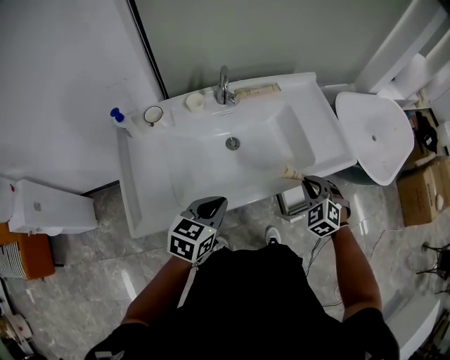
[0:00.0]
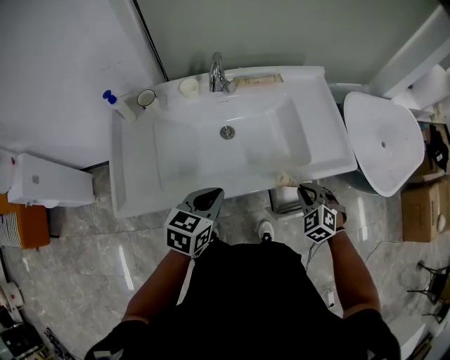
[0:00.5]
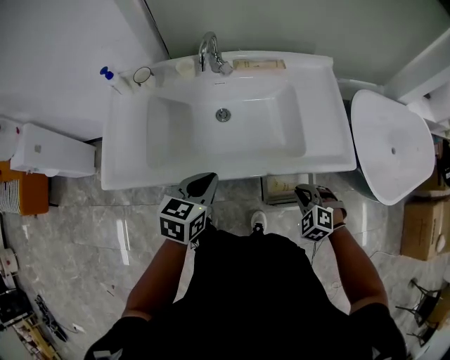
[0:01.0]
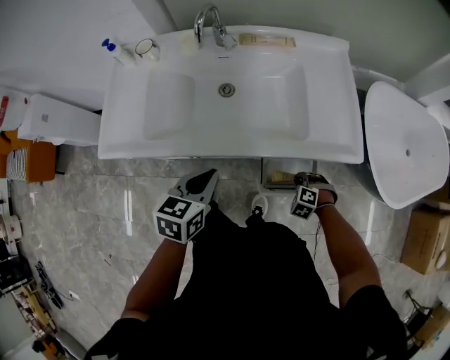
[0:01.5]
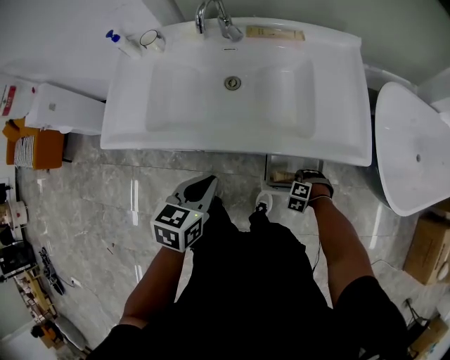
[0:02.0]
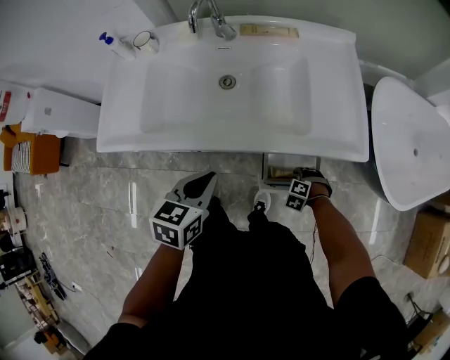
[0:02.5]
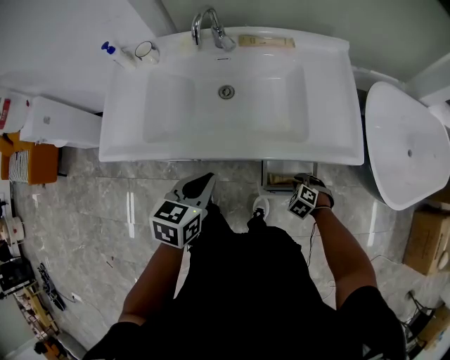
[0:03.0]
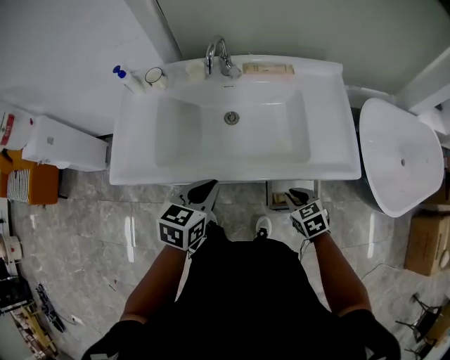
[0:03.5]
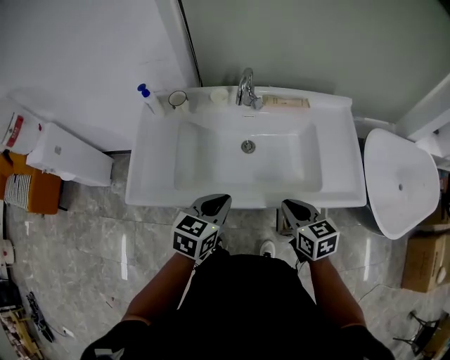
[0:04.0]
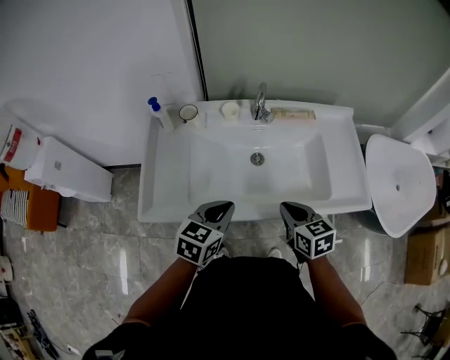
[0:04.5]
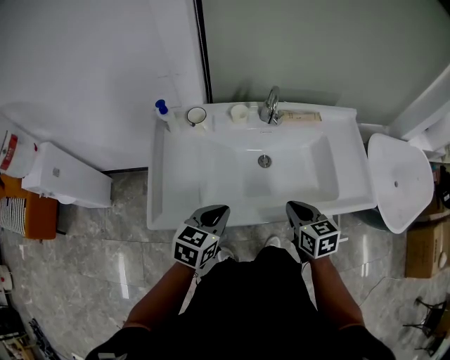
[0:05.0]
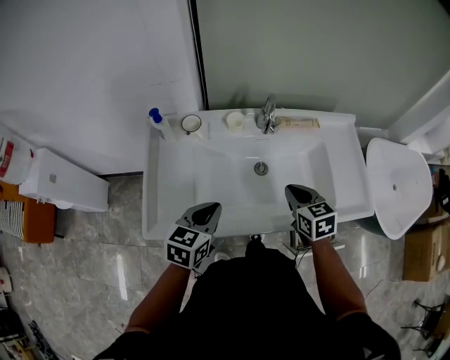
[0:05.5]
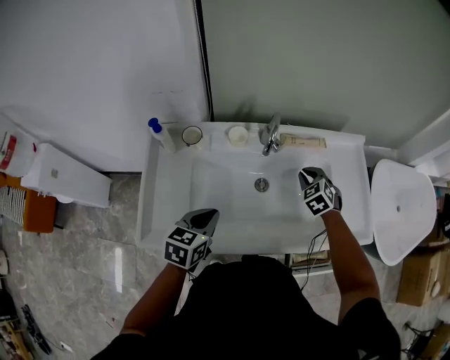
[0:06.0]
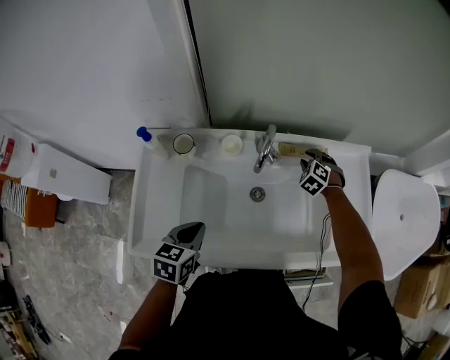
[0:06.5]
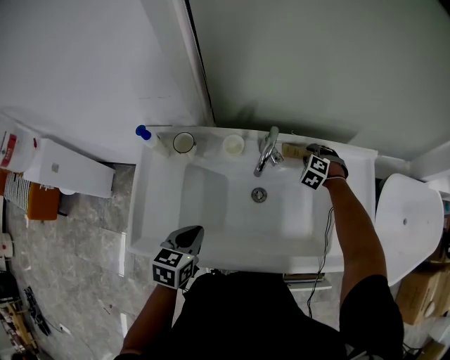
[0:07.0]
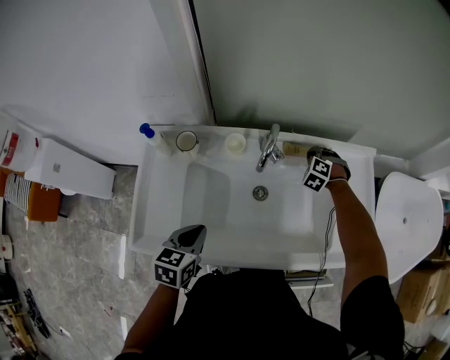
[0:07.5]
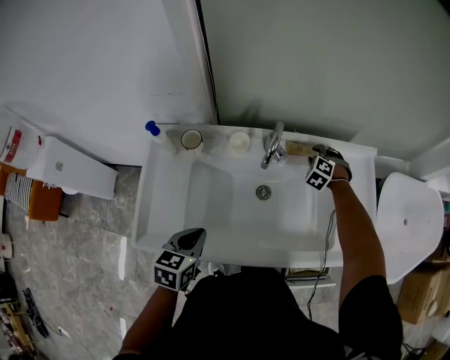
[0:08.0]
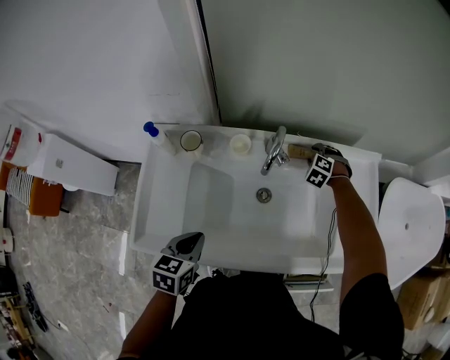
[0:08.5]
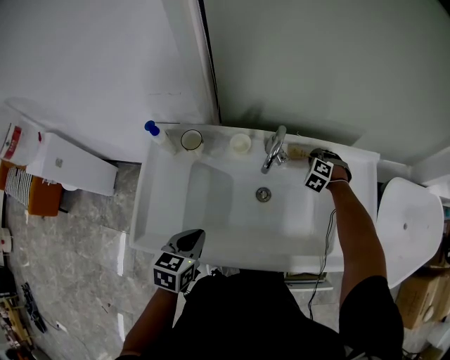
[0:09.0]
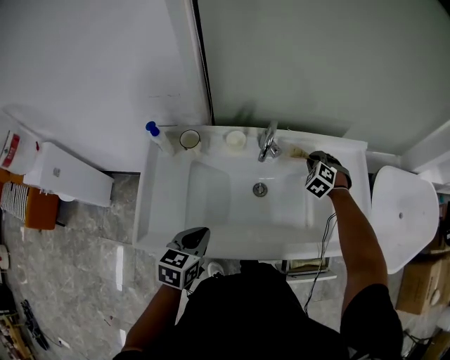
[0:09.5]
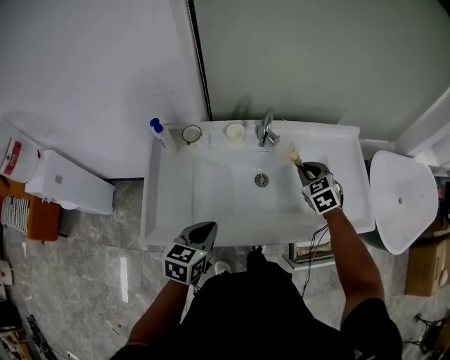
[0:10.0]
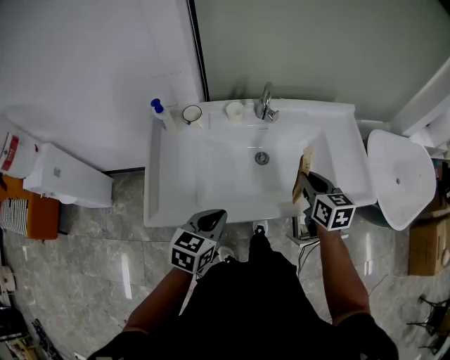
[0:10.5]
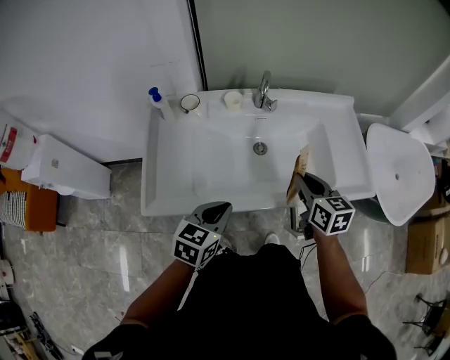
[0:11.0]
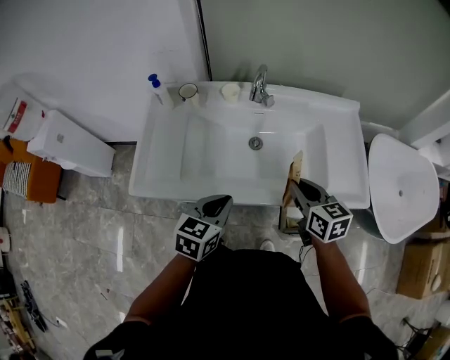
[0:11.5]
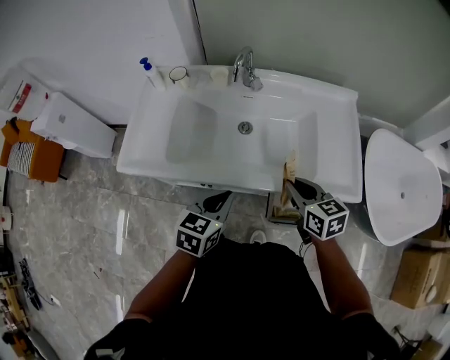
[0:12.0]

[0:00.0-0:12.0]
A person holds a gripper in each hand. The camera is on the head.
0.0 to 2.0 s: The left gripper shifts by roughly 20 cm, and turns by approximately 30 degrees, while the right gripper travels downward by roughly 35 cm, and tips its fingers downward by some 30 degrees.
2.0 to 4.0 s: The left gripper moves about 15 cm, while the right gripper is displaced upward by some 35 cm, and angles its fingers upward, by some 50 degrees.
4.0 to 6.0 s: The right gripper shifts about 25 cm forward, and turns by about 50 degrees. The left gripper goes about 15 cm to the left and forward.
6.0 to 8.0 s: The right gripper moves forward and downward, some 15 cm, rotates about 30 degrees, and opens its fingers.
8.0 to 10.0 s: The right gripper goes approximately 25 cm backward and upward, turns by roughly 40 degrees, and closes its fingers. The left gripper changes place by approximately 5 cm.
10.0 to 12.0 s: The right gripper heads backward and to the right, covering about 25 cm, and rotates about 40 degrees. Meanwhile the left gripper goes approximately 20 cm to the right and backward.

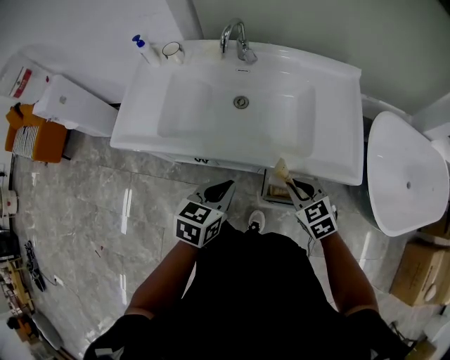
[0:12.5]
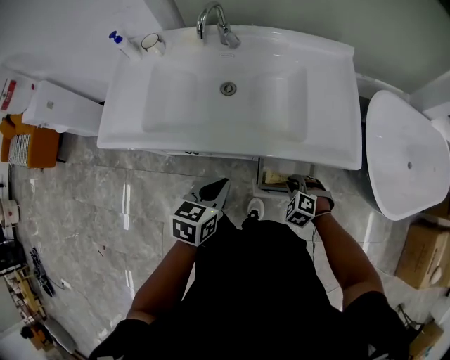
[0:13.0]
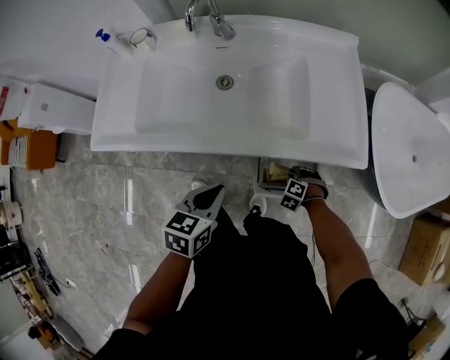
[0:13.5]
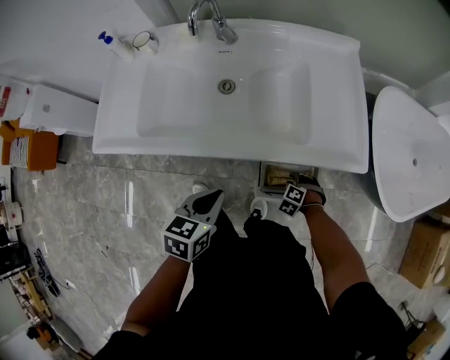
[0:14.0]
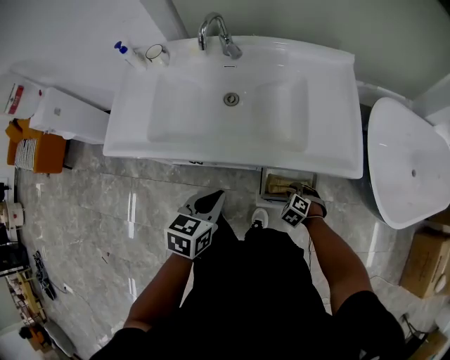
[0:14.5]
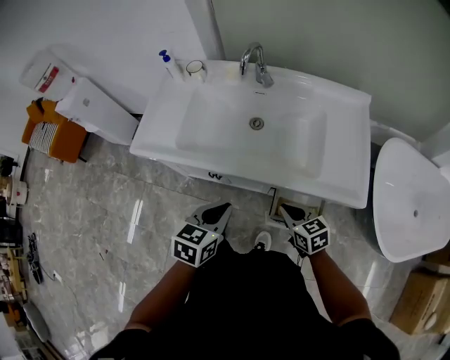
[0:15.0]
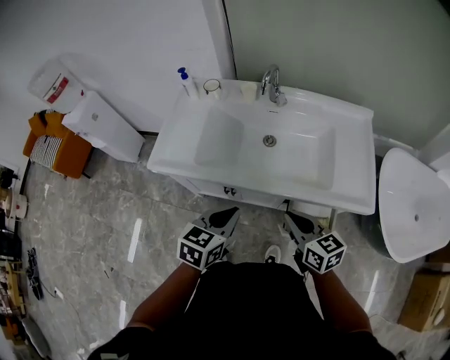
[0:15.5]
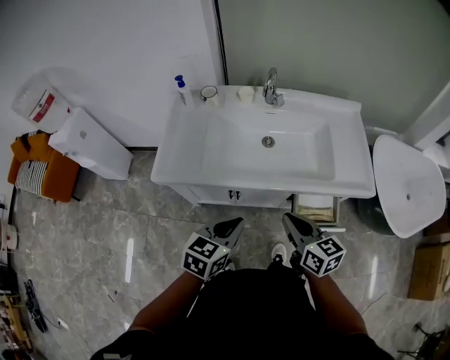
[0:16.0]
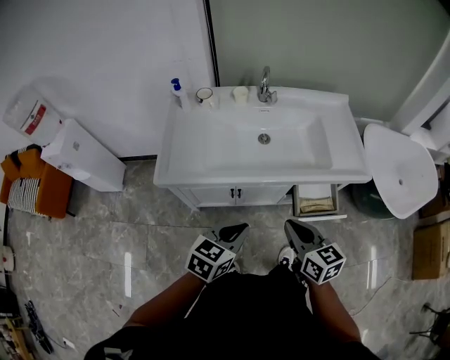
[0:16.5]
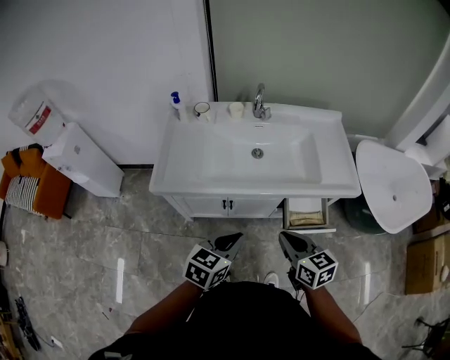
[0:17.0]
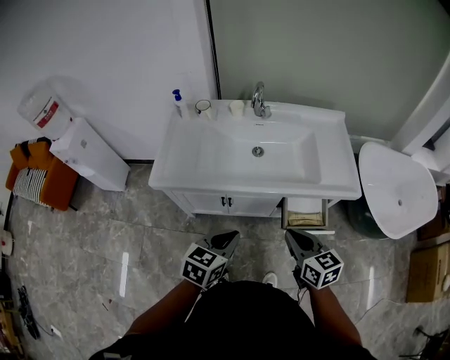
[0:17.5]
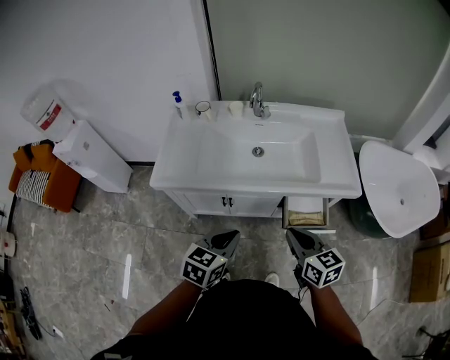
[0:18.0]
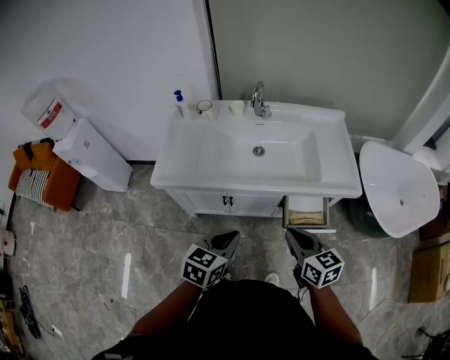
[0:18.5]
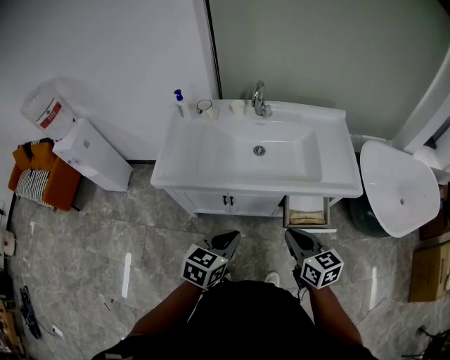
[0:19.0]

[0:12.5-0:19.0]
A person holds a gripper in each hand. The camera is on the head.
12.5 to 14.5 s: The right gripper heads downward, covering some 25 cm, and turns by some 40 degrees.
14.5 to 17.0 s: The left gripper shifts by approximately 20 cm; the right gripper travels upward by some 35 cm, and angles its fingers upward, by roughly 50 degrees.
17.0 to 19.0 s: The right gripper moves to the right, roughly 5 cm.

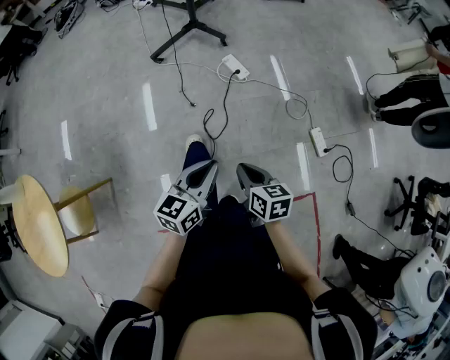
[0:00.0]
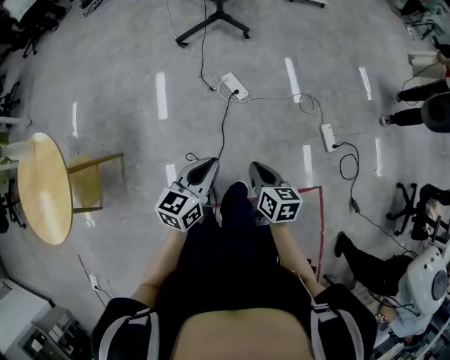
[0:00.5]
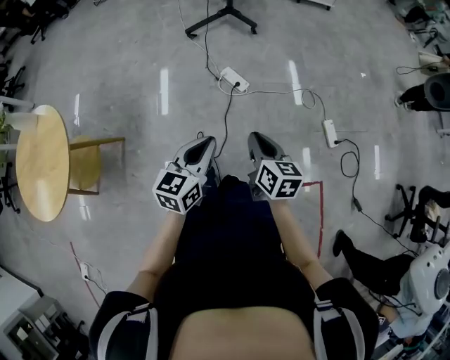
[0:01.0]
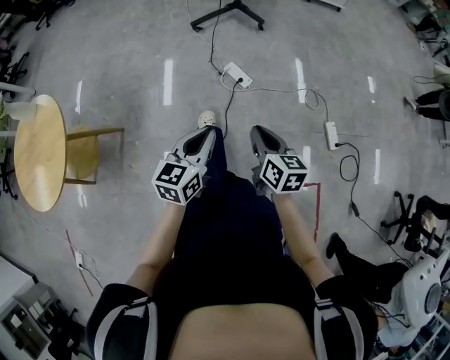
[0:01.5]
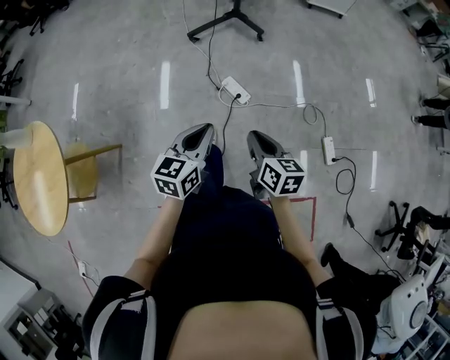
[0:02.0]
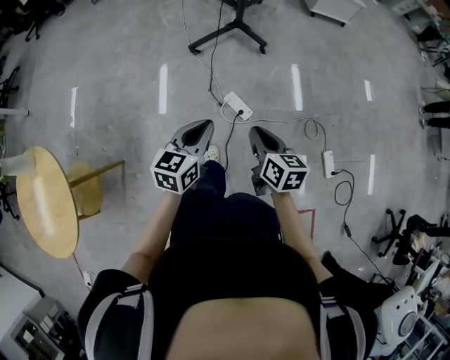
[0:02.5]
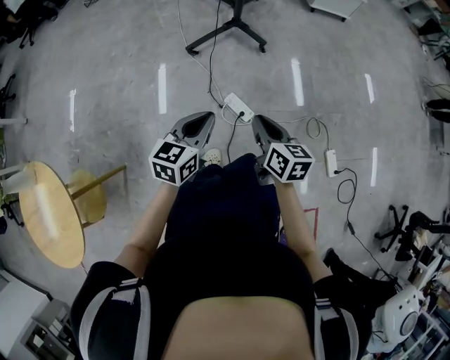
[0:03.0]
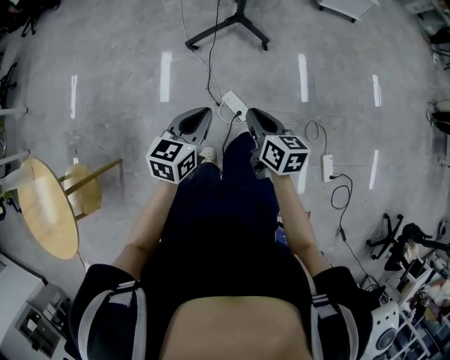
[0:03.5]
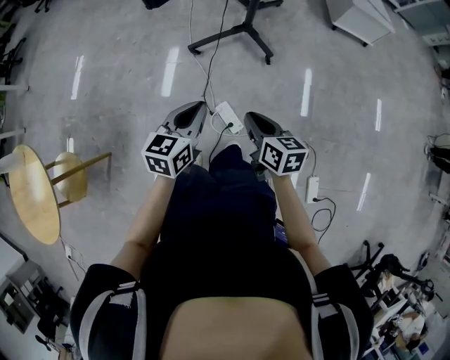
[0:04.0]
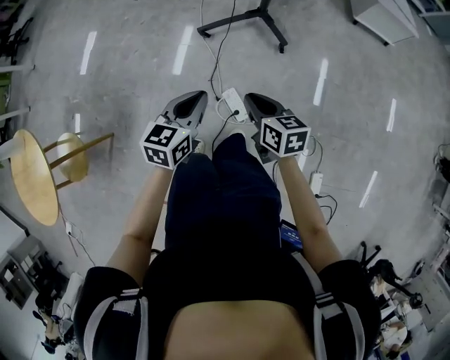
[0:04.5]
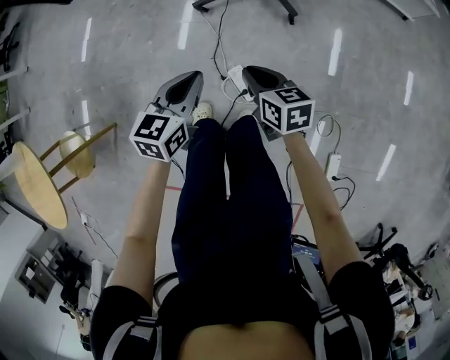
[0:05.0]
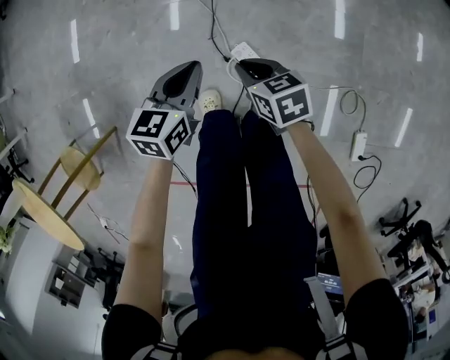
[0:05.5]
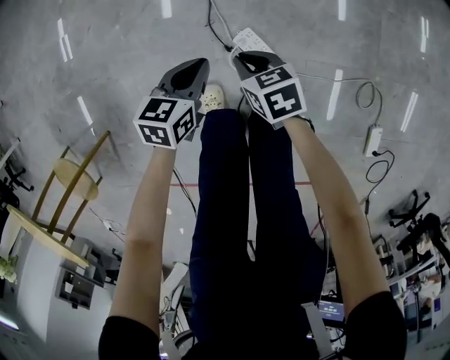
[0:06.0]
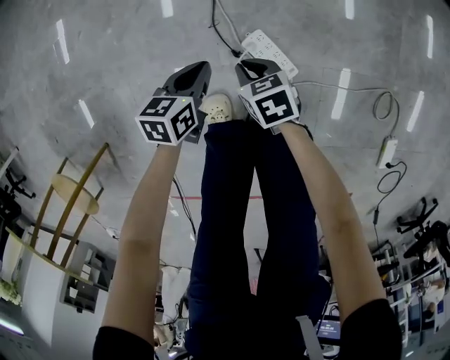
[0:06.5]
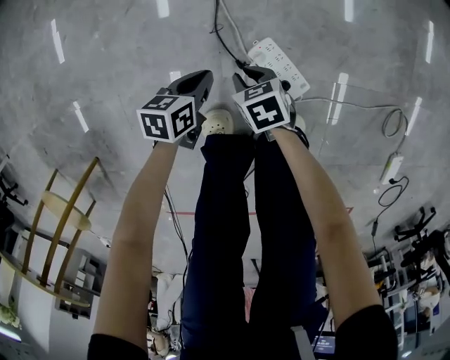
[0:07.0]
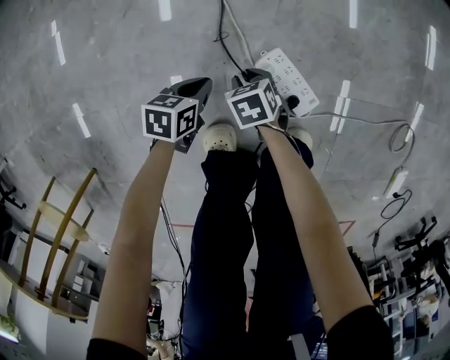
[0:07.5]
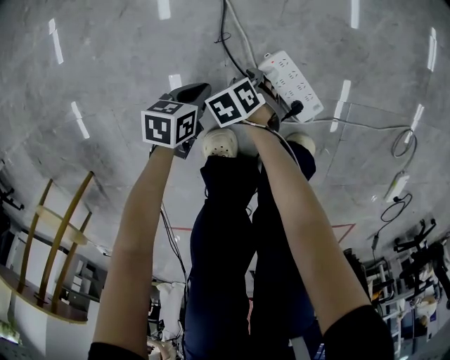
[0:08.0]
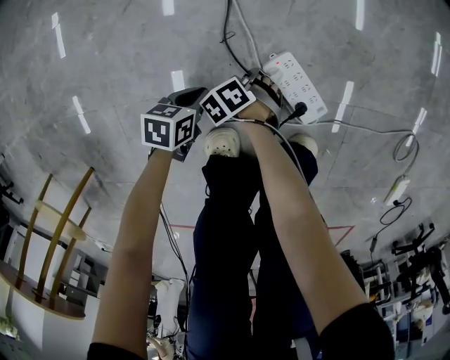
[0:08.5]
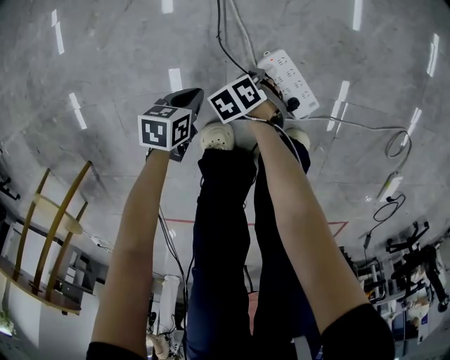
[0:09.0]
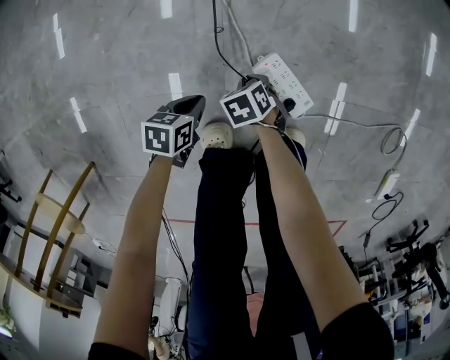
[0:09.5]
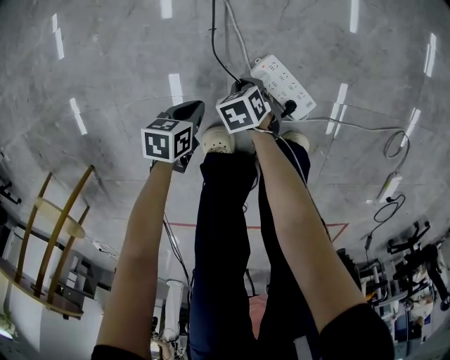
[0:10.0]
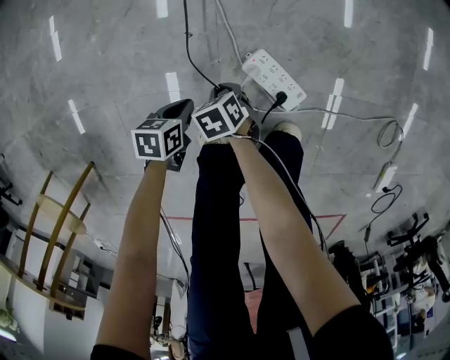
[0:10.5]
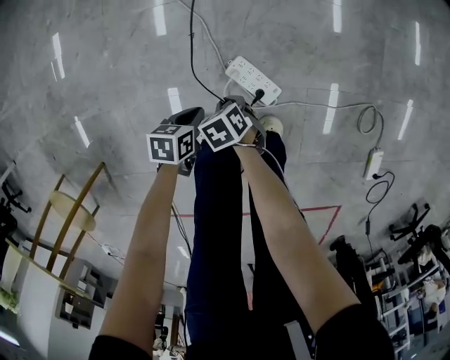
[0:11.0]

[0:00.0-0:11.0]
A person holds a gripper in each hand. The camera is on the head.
0.0 to 2.0 s: Both grippers move to the left, roughly 10 cm. The left gripper reaches approximately 15 cm backward, then returns; the right gripper reaches approximately 10 cm backward, then returns.
2.0 to 3.5 s: Both grippers move forward, some 25 cm.
3.5 to 5.5 s: The grippers both shift downward and forward by about 30 cm. The right gripper rotates approximately 30 degrees.
5.5 to 7.5 s: Both grippers travel together downward, approximately 50 cm. The left gripper turns by roughly 30 degrees, while the right gripper turns by about 20 degrees, and opens.
7.5 to 9.0 s: The right gripper changes its angle by some 30 degrees.
9.0 to 11.0 s: Both grippers move upward, about 15 cm.
